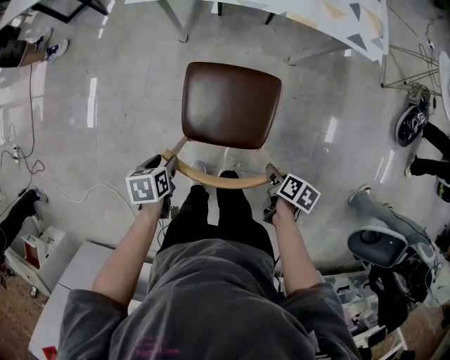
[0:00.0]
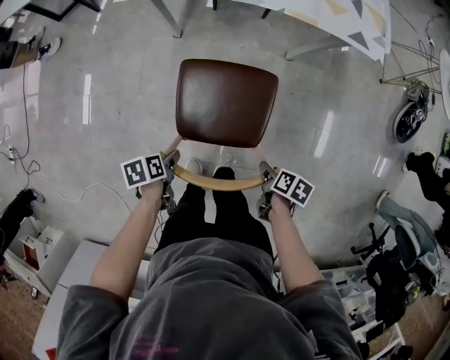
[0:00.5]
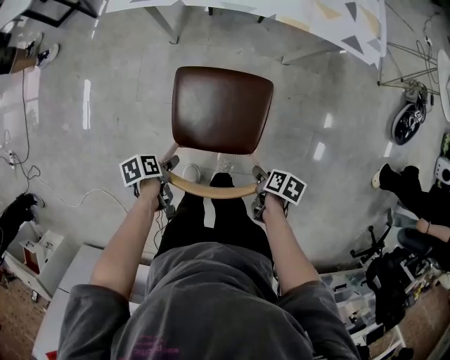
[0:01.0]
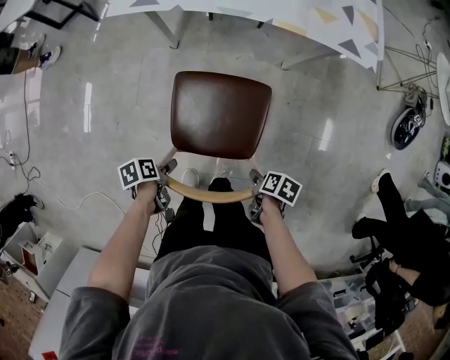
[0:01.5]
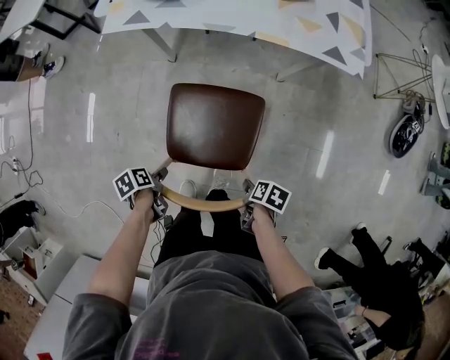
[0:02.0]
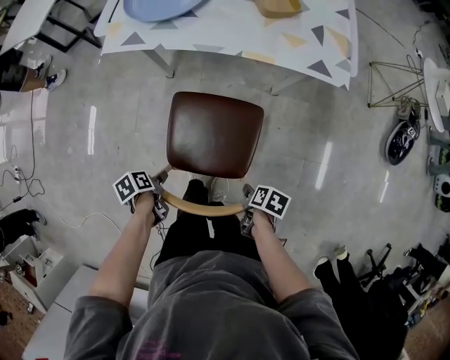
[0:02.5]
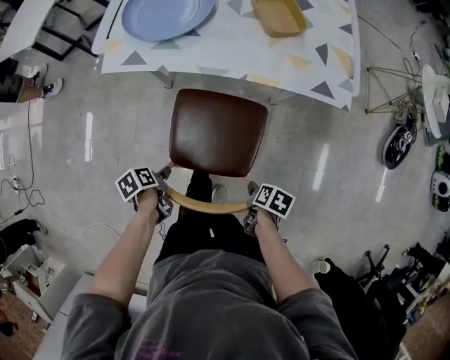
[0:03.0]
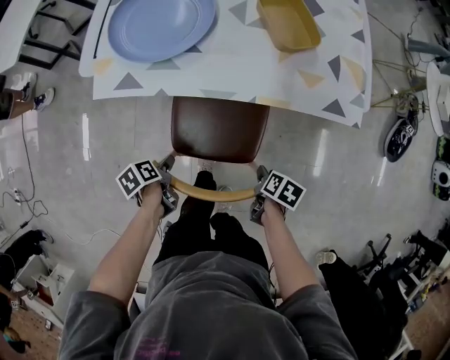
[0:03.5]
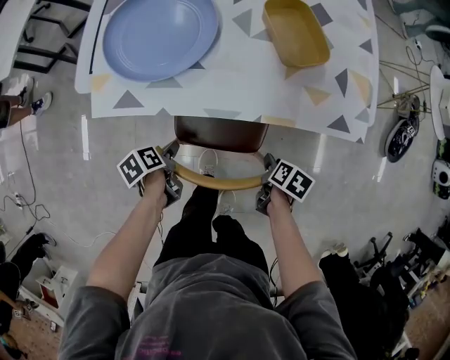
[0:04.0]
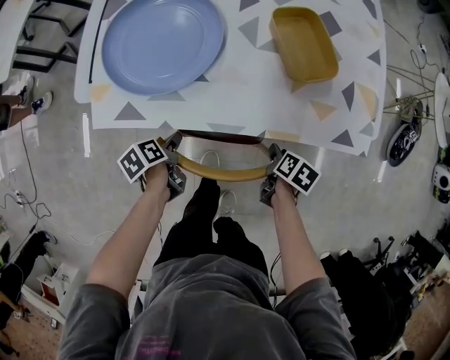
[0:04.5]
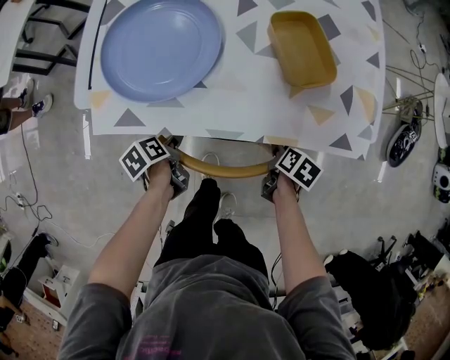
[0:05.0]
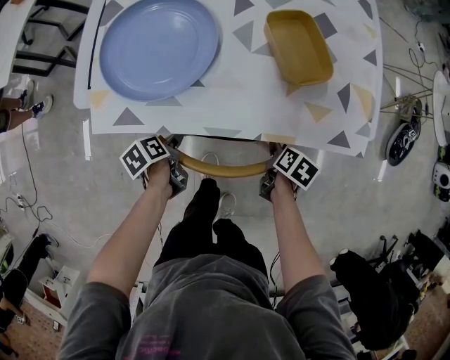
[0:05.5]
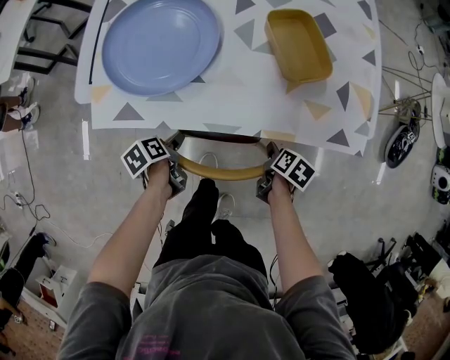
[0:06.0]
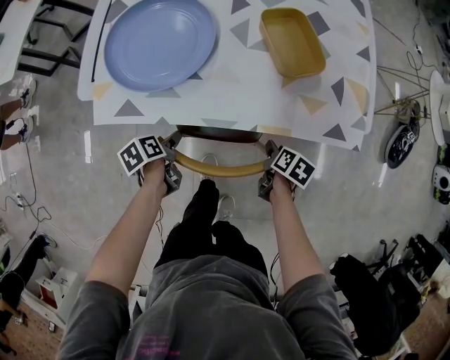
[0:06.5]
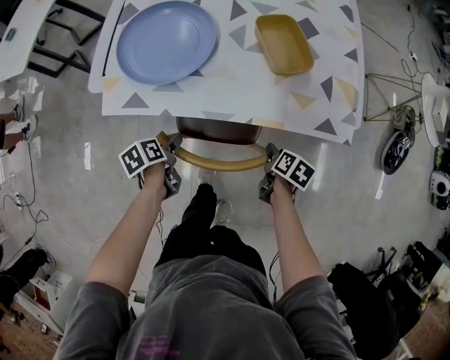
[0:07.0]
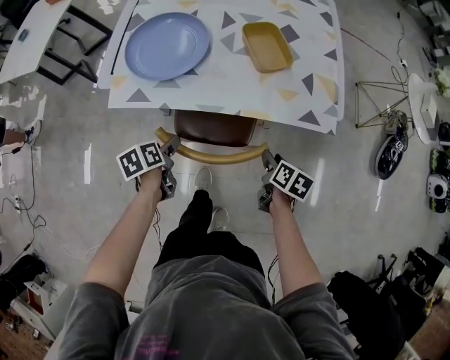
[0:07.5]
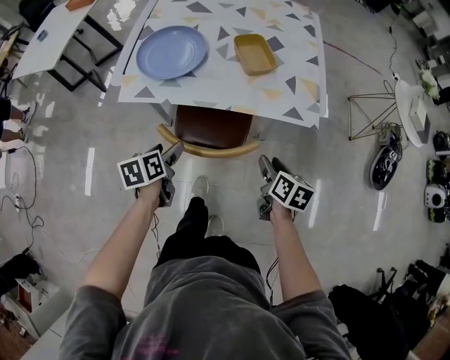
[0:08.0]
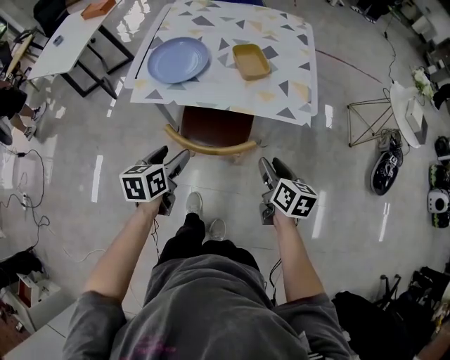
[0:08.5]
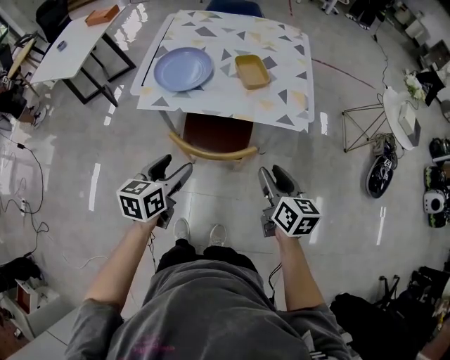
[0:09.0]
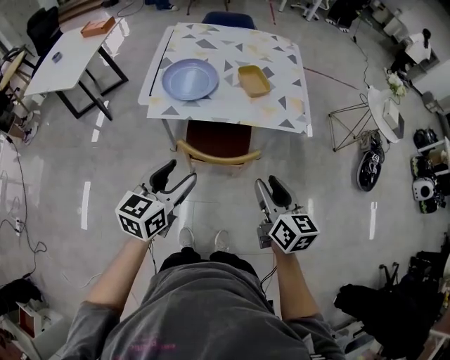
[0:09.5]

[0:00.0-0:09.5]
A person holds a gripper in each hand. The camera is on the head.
0:00.0 to 0:02.0: The left gripper moves downward, some 5 cm, and changes its angle by some 30 degrees.
0:02.0 to 0:04.0: The right gripper changes place by approximately 30 cm. Meanwhile the left gripper ends up some 30 cm from where it was.
0:04.0 to 0:05.5: The grippers both shift forward by some 10 cm.
0:05.5 to 0:07.5: The left gripper goes some 10 cm upward. Meanwhile the right gripper goes about 10 cm upward and backward.
0:07.5 to 0:09.5: Both grippers move upward and backward, some 35 cm. The right gripper tips its fingers upward by about 30 degrees. Meanwhile the left gripper tilts its fingers about 40 degrees upward.

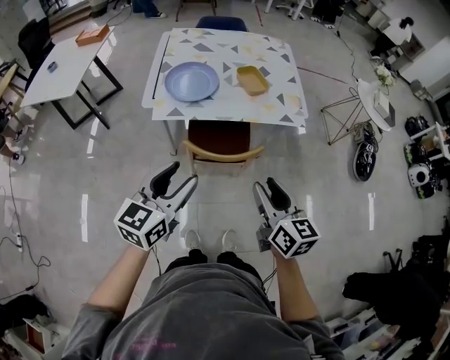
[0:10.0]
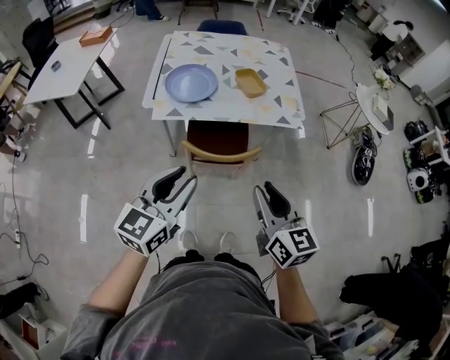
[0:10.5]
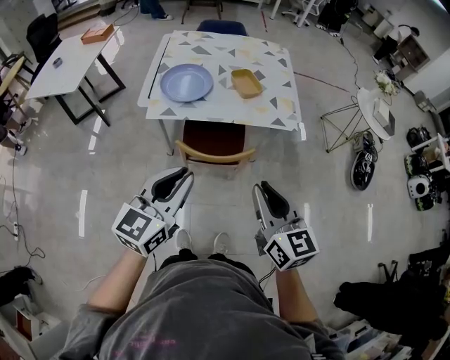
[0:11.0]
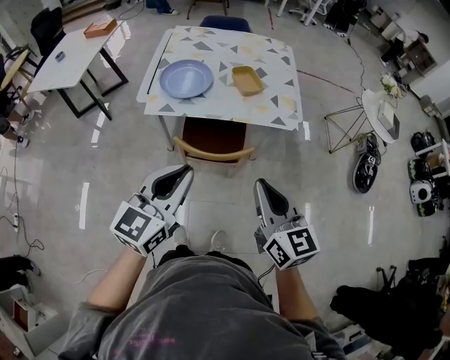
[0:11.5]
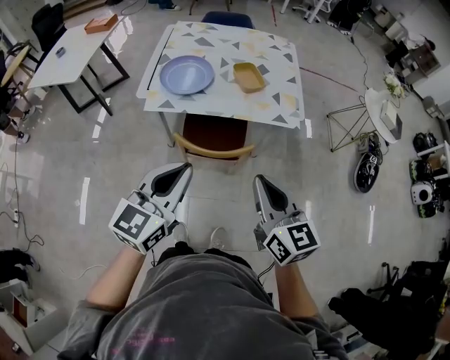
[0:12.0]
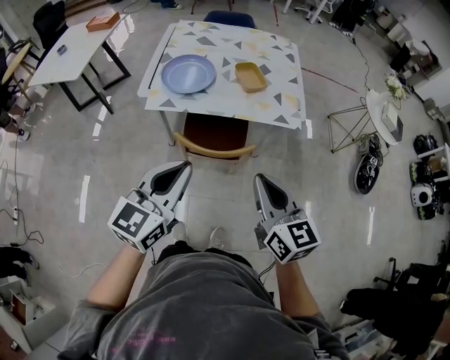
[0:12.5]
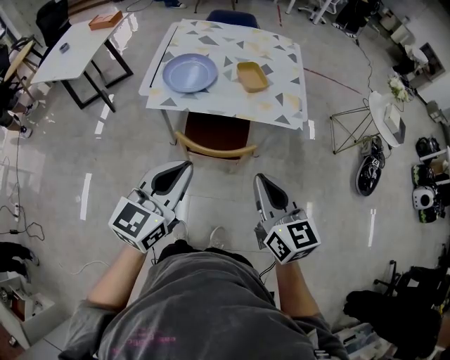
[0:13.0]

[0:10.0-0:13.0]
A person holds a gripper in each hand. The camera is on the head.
0:10.0 to 0:11.5: The right gripper shifts roughly 5 cm upward, and closes, while the left gripper travels to the right by approximately 10 cm, and closes its fingers.
0:11.5 to 0:13.0: The grippers move only a little.

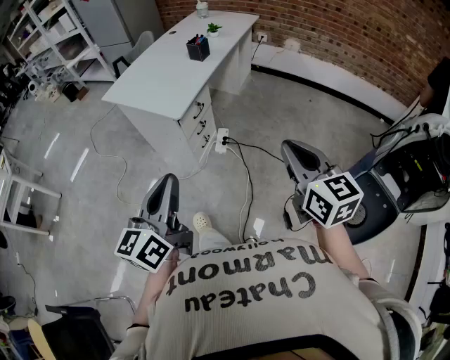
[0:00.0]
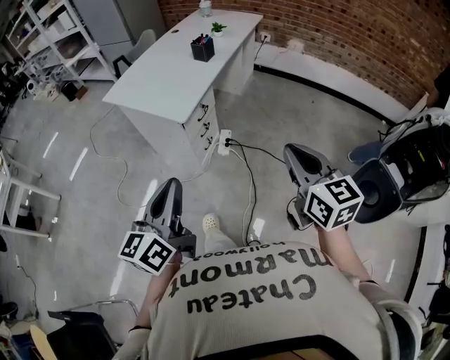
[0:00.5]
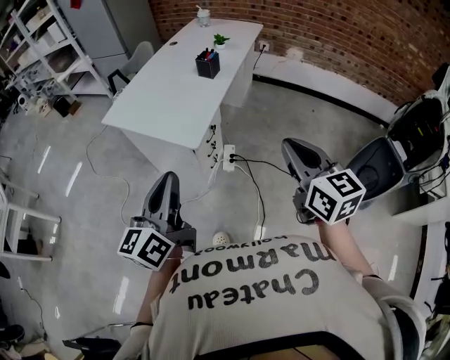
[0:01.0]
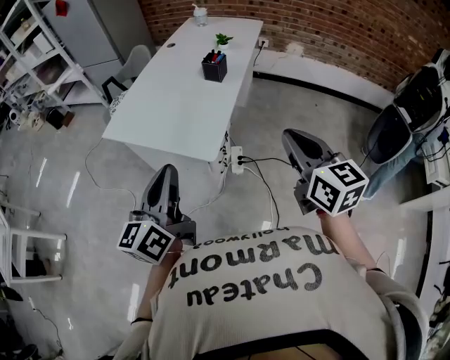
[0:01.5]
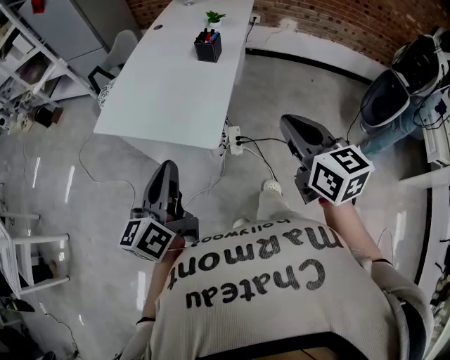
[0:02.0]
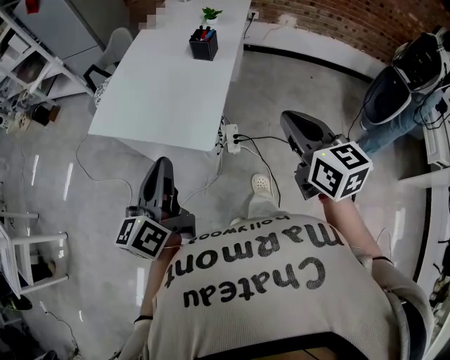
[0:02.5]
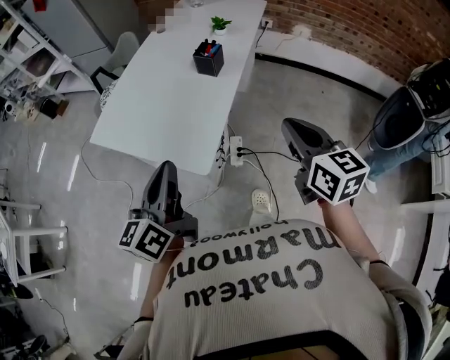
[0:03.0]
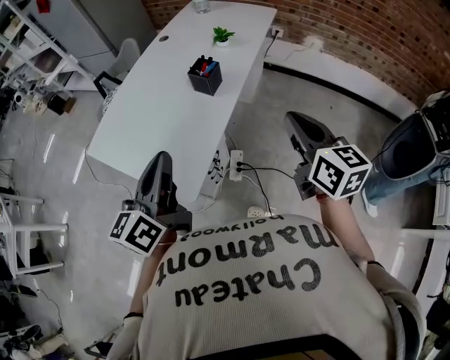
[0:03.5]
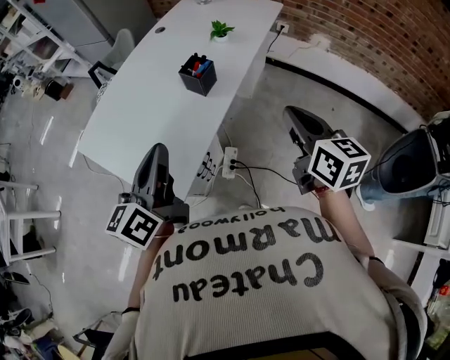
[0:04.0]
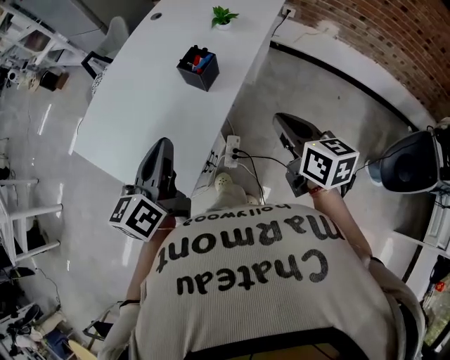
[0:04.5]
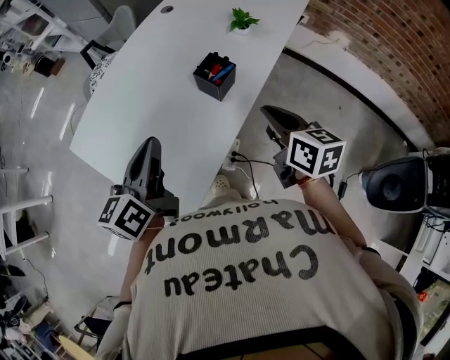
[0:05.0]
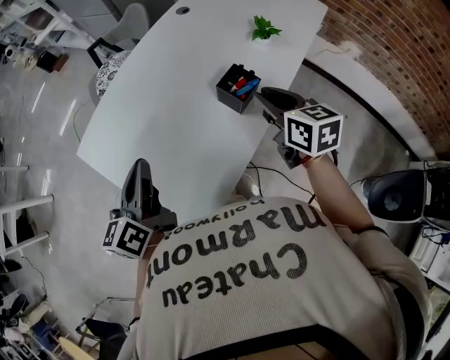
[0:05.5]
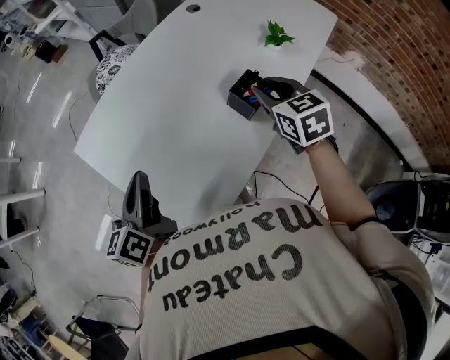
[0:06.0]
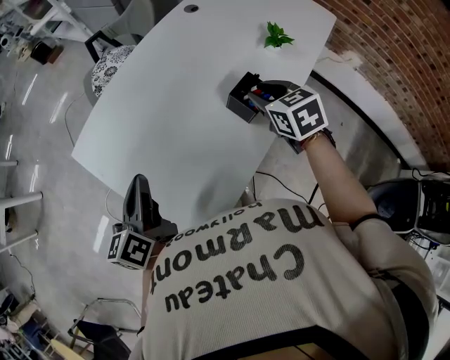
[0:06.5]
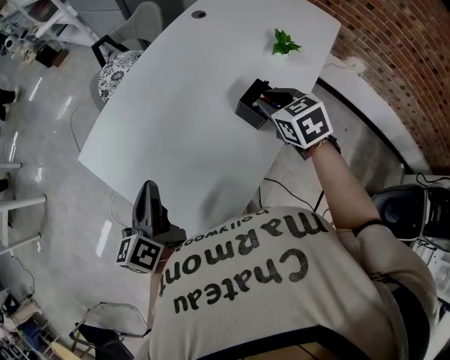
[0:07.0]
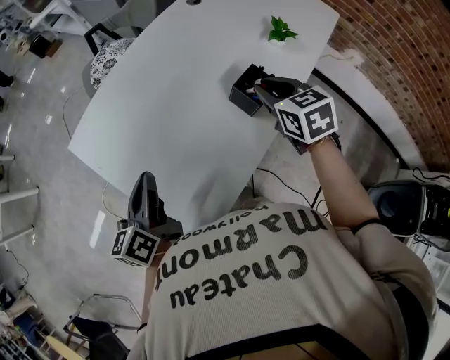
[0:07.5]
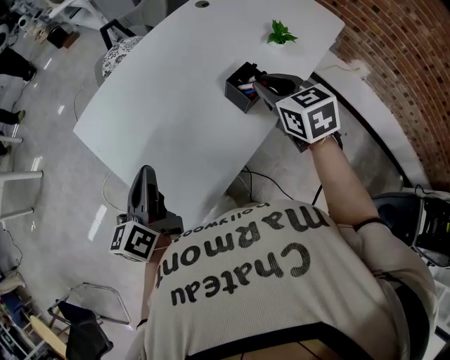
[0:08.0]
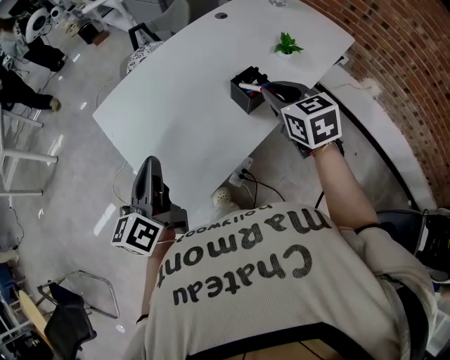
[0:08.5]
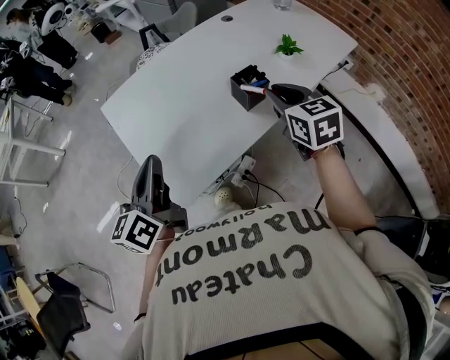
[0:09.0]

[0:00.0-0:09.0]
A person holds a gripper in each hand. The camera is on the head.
0:00.0 to 0:02.0: The grippers both shift forward and to the left by roughly 35 cm.
0:02.0 to 0:04.5: Both grippers travel together forward and to the right, approximately 35 cm. The right gripper turns by about 20 degrees.
0:04.5 to 0:07.0: The right gripper shifts about 30 cm forward and to the left, and rotates some 40 degrees; the left gripper moves to the left and forward, roughly 25 cm, and rotates approximately 20 degrees.
0:07.0 to 0:09.0: The right gripper travels backward and upward by approximately 15 cm. Meanwhile the left gripper heads backward, upward and to the right, covering about 20 cm.

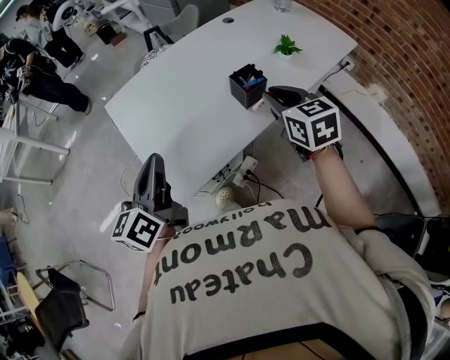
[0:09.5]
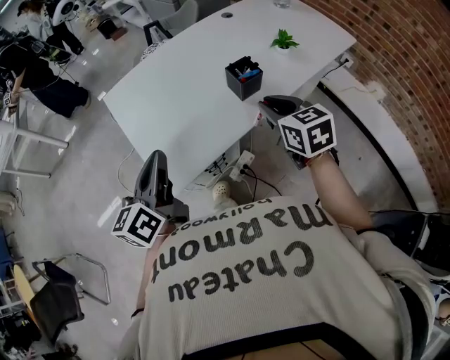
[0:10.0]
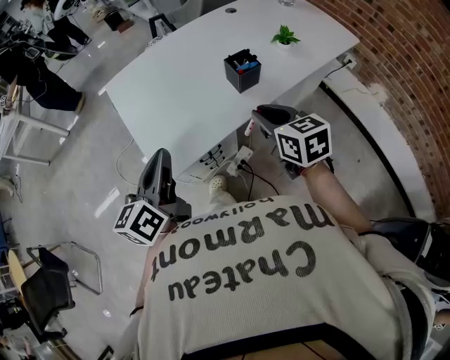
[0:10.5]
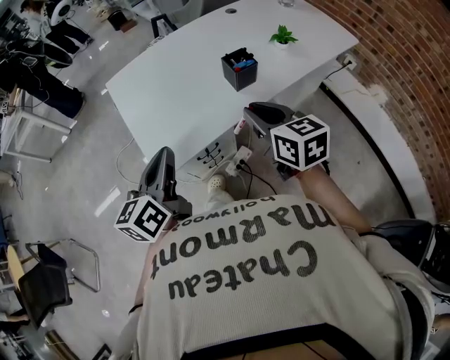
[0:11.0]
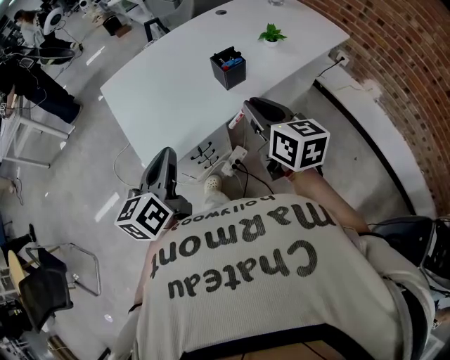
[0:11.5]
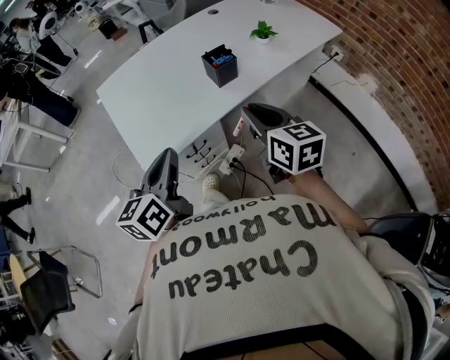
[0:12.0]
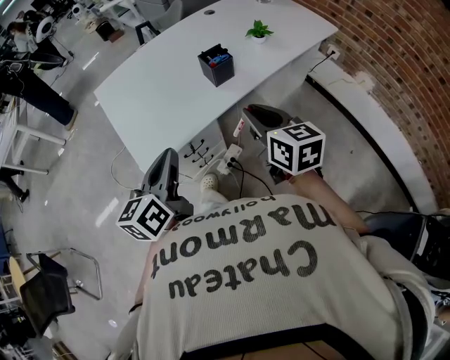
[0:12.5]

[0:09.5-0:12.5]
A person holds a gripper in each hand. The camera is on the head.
0:09.5 to 0:11.0: The left gripper travels backward and to the right by some 10 cm, while the right gripper travels backward by approximately 10 cm.
0:11.0 to 0:12.5: The right gripper heads to the right and backward, covering some 5 cm. The left gripper goes about 5 cm to the right.

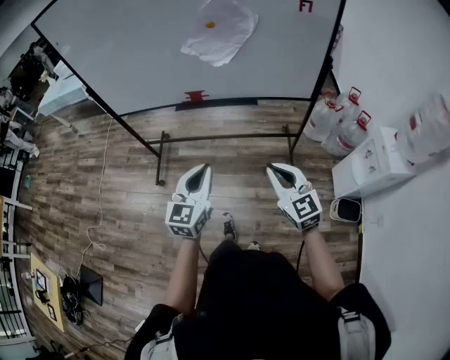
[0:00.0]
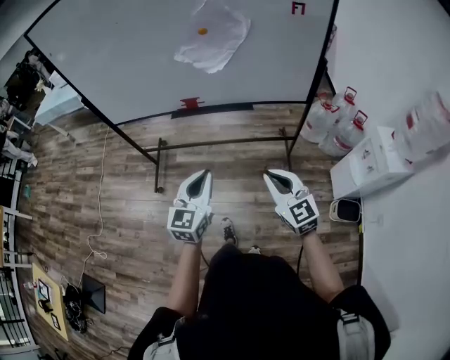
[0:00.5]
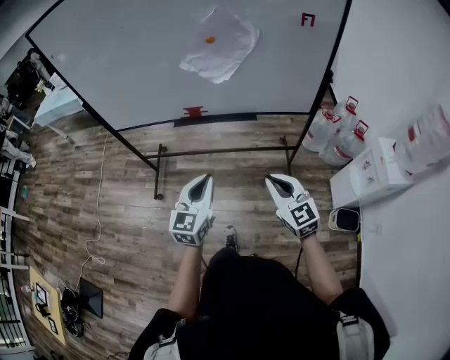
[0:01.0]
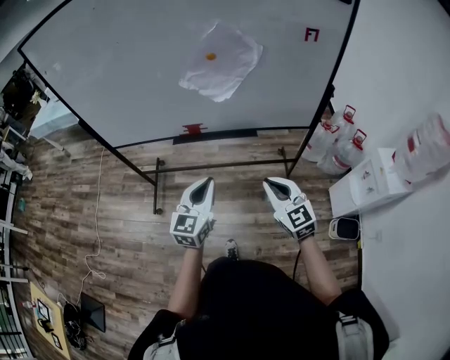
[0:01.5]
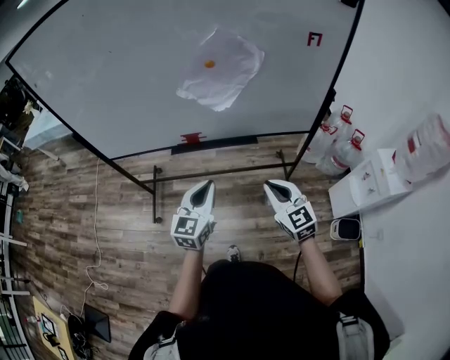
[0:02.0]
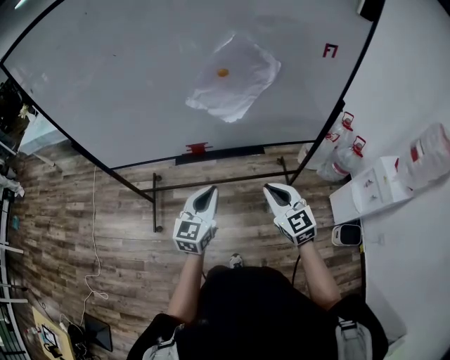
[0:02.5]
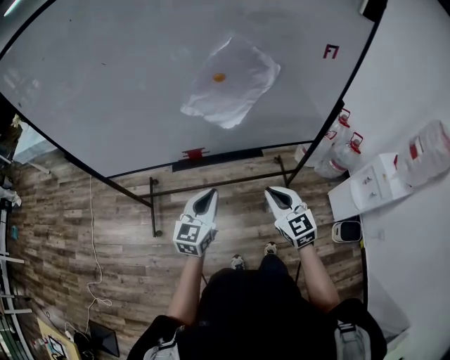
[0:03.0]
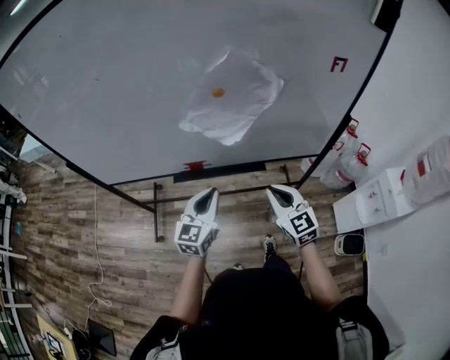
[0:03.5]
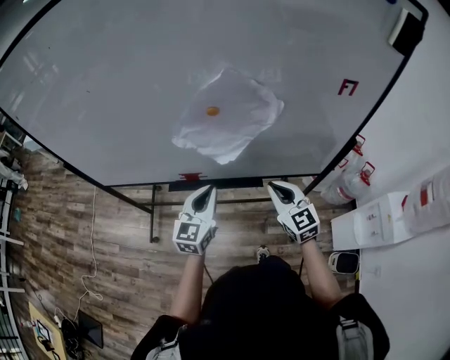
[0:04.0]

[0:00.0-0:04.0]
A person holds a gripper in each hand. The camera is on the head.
0:00.0 to 0:02.0: The two grippers go approximately 15 cm forward.
0:02.0 to 0:04.0: The two grippers go approximately 20 cm forward.
